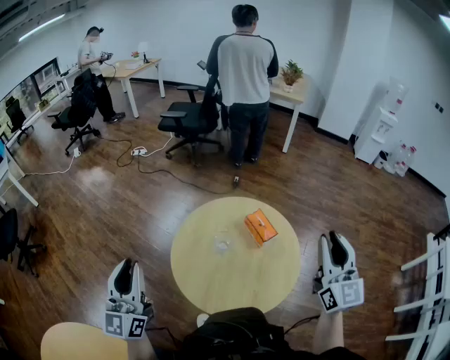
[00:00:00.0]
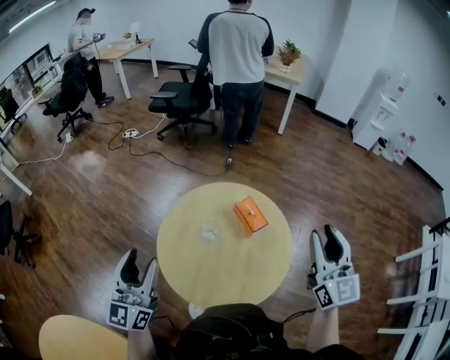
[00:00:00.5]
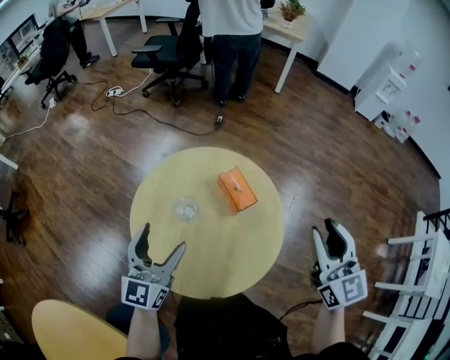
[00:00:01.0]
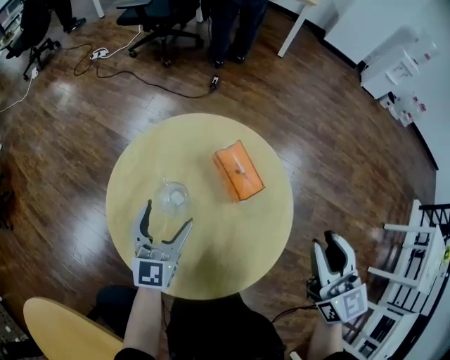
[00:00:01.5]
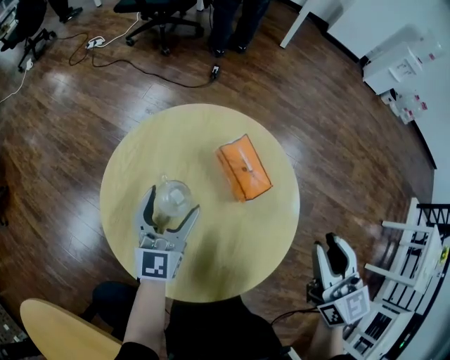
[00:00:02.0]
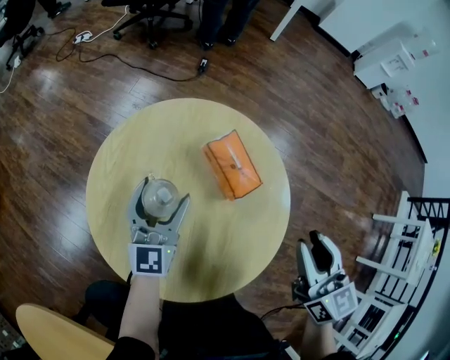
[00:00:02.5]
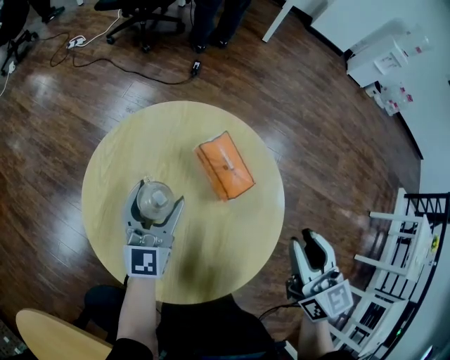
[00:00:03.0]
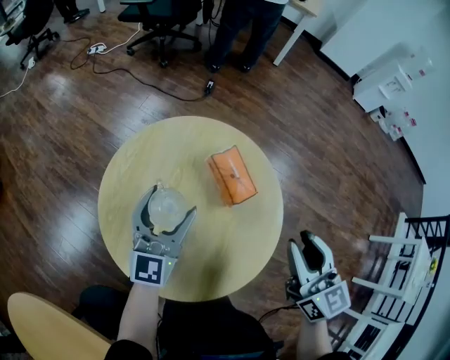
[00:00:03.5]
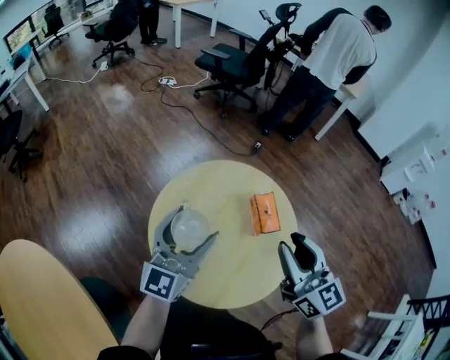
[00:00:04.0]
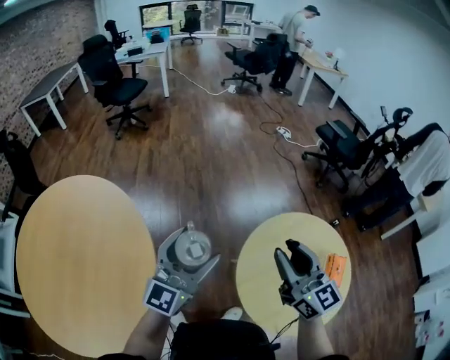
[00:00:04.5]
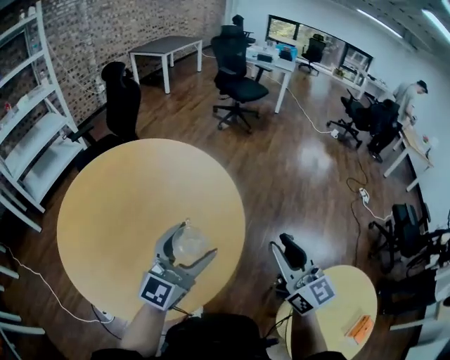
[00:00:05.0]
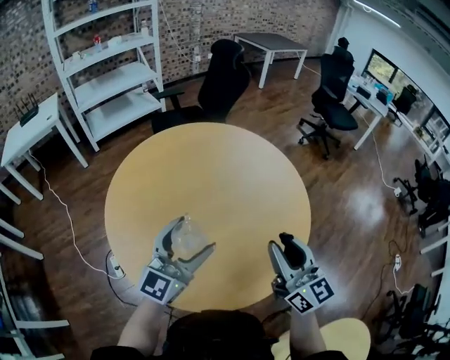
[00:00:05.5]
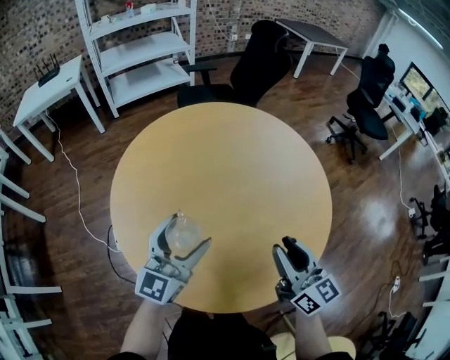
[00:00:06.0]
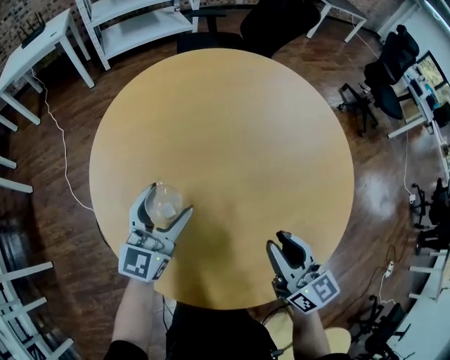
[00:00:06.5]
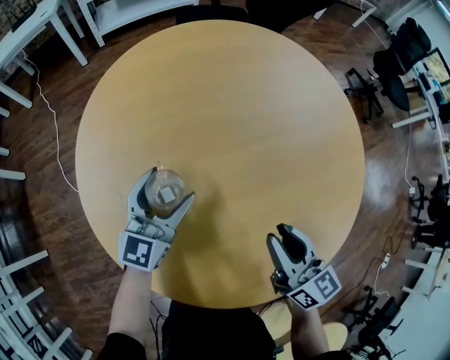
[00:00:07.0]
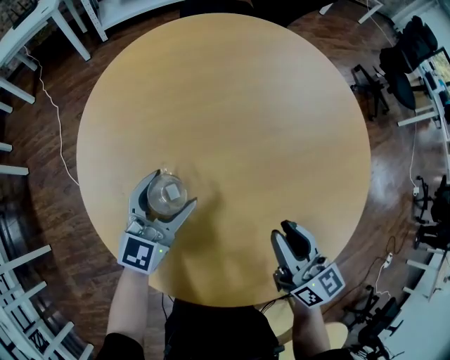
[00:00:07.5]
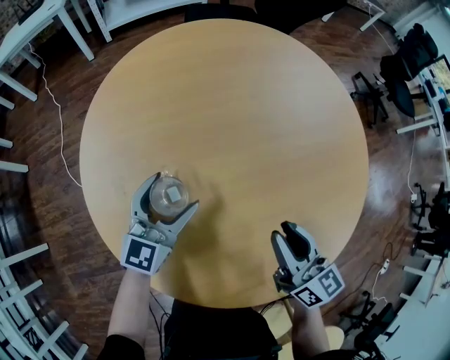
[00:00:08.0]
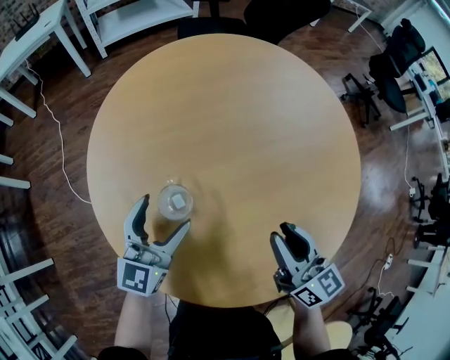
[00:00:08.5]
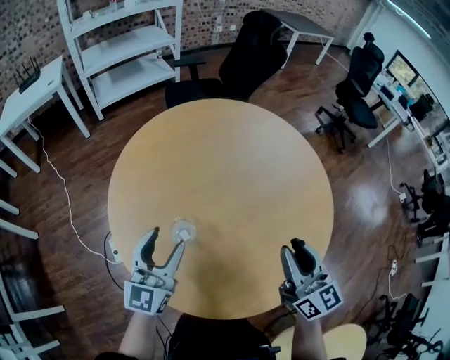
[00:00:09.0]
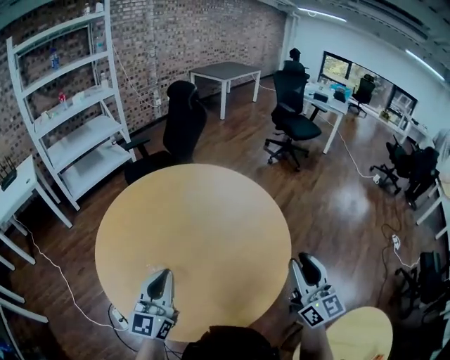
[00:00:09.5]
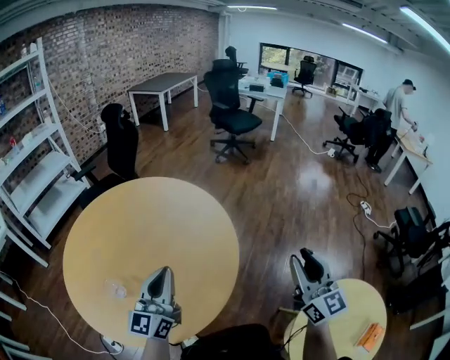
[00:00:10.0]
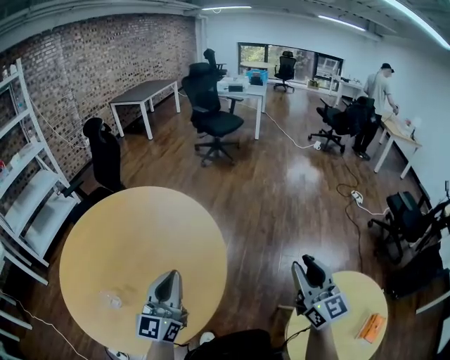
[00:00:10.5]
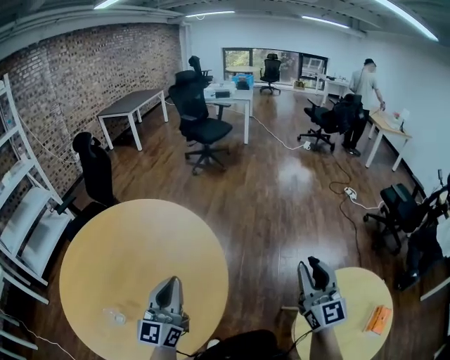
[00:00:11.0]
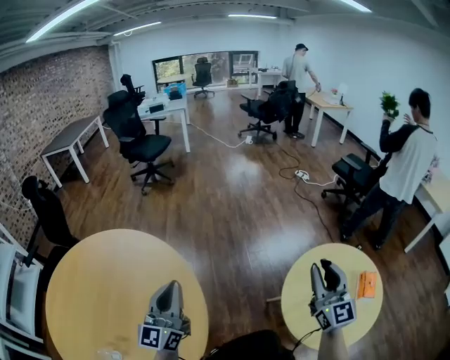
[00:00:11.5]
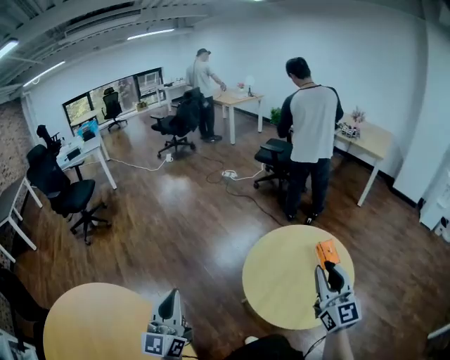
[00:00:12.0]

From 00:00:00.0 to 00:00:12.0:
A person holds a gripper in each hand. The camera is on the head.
From 00:00:00.0 to 00:00:02.0: The left gripper travels downward, to the right and forward by roughly 40 cm, turns by about 20 degrees, and opens. Meanwhile the right gripper is displaced downward by some 20 cm, and changes its angle by about 30 degrees.
From 00:00:02.0 to 00:00:04.0: The right gripper heads to the left and upward, covering roughly 15 cm, and rotates some 30 degrees. Meanwhile the left gripper is displaced upward and backward by about 20 cm.
From 00:00:04.0 to 00:00:06.0: Both grippers are carried roughly 80 cm. The right gripper swivels approximately 110 degrees; the left gripper turns by roughly 110 degrees.
From 00:00:06.0 to 00:00:08.0: The left gripper heads downward and forward, covering approximately 20 cm; the right gripper is displaced downward by some 15 cm.
From 00:00:08.0 to 00:00:10.0: The right gripper changes place by roughly 50 cm, and rotates about 60 degrees. The left gripper shifts by roughly 35 cm, rotates about 40 degrees, and closes up.
From 00:00:10.0 to 00:00:12.0: The left gripper moves roughly 30 cm, and rotates approximately 60 degrees; the right gripper moves roughly 40 cm, and swivels some 70 degrees.

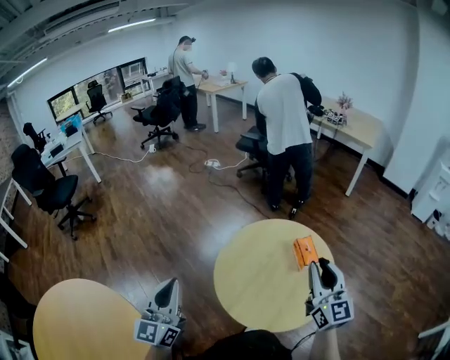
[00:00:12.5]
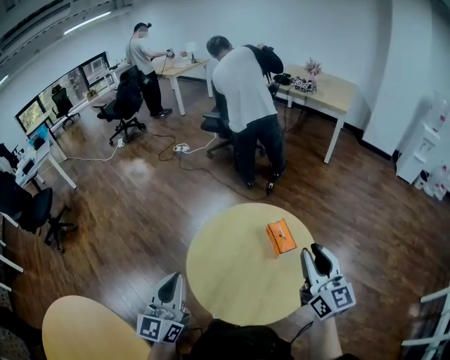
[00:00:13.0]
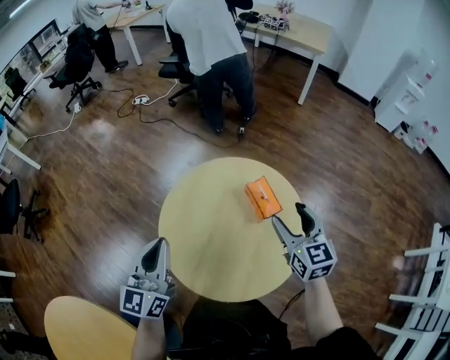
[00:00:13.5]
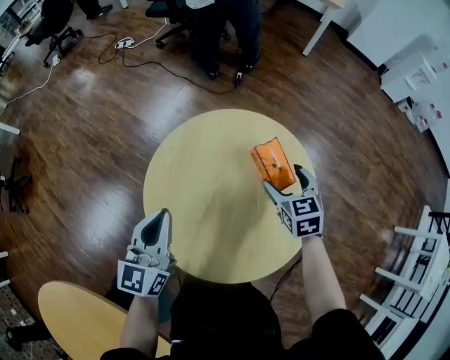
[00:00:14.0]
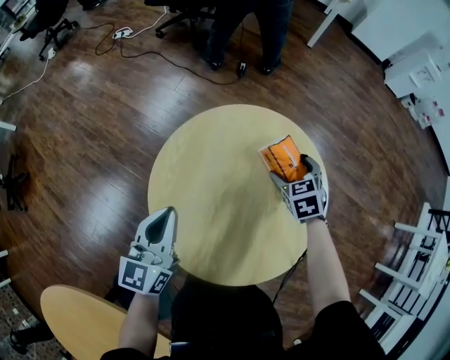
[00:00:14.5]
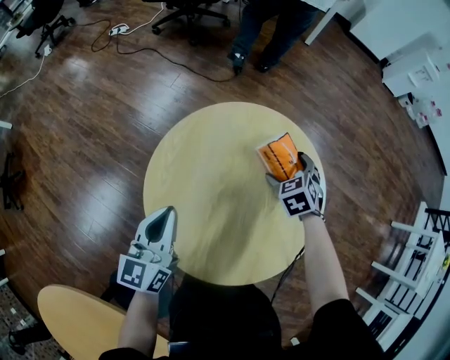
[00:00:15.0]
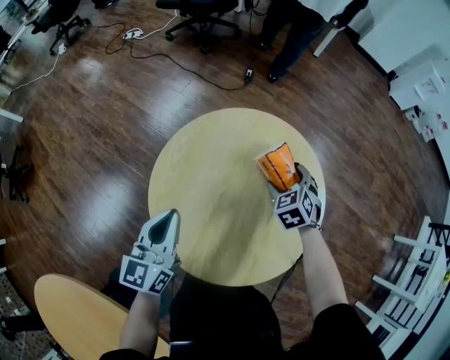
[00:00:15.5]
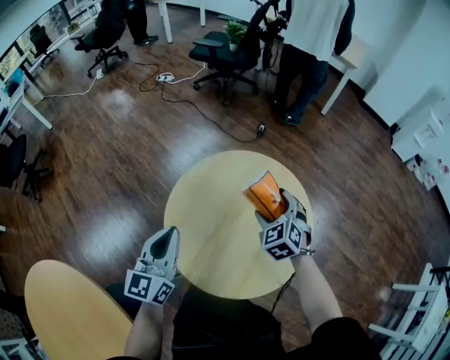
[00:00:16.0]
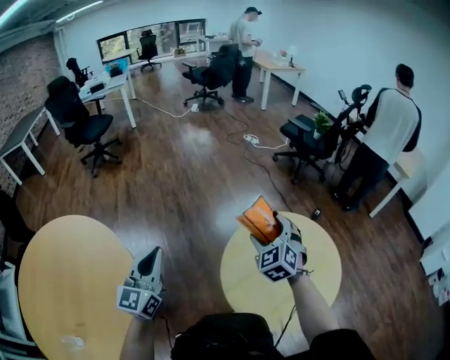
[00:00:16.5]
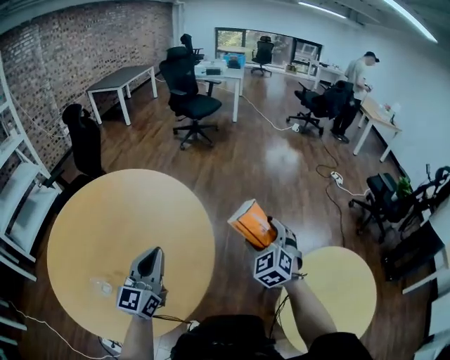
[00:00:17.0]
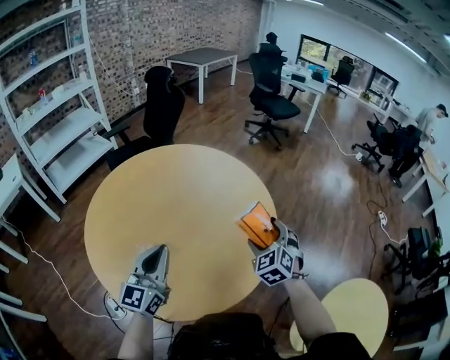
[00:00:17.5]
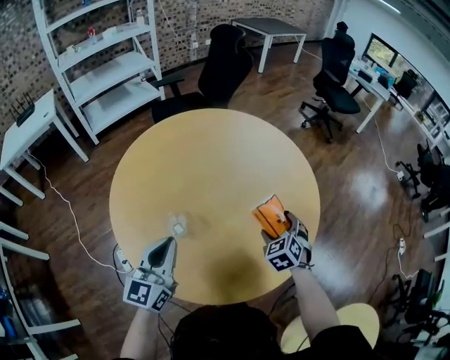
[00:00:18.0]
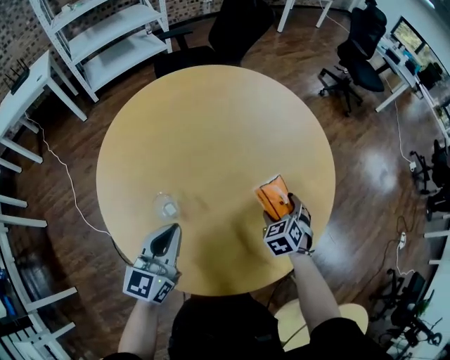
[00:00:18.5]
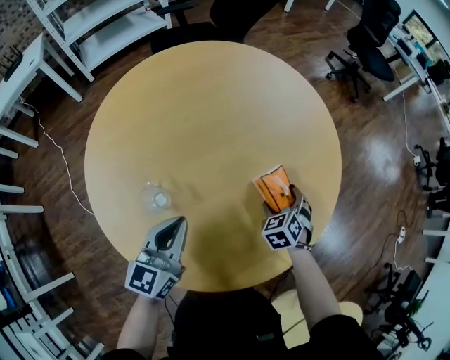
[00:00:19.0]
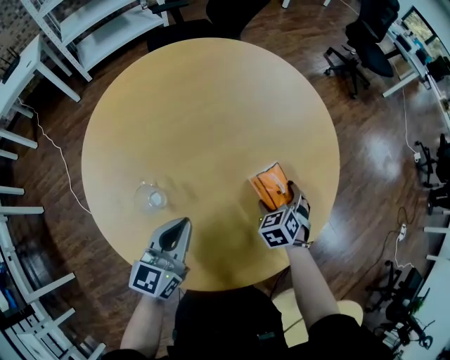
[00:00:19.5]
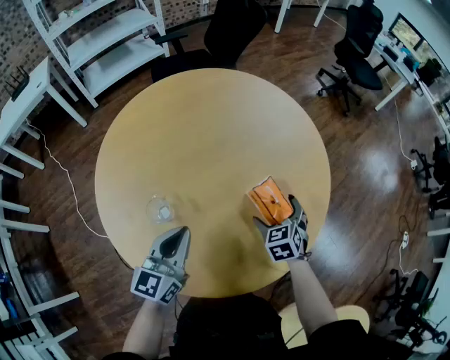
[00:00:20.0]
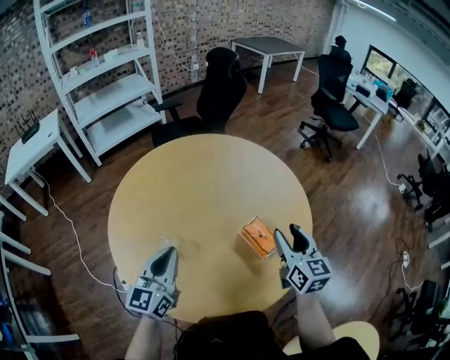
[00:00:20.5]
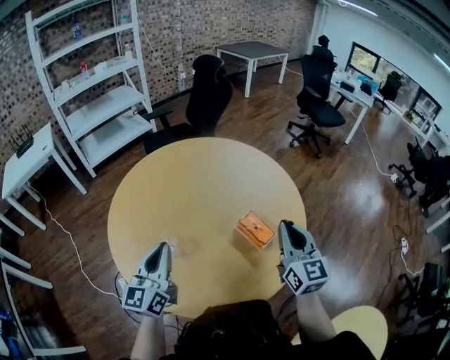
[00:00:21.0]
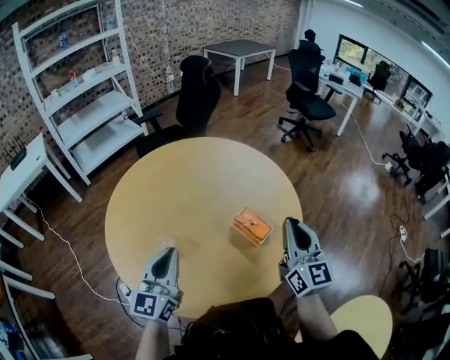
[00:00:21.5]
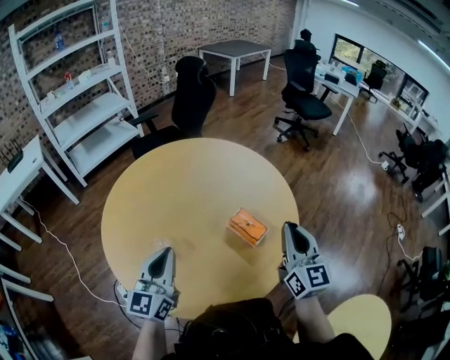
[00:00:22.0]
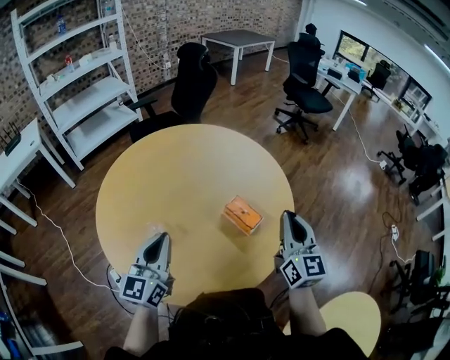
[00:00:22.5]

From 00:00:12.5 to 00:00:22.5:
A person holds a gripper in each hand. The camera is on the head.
From 00:00:12.5 to 00:00:14.5: The left gripper is displaced forward, downward and to the right by about 35 cm, and changes its angle by approximately 40 degrees; the right gripper is displaced downward and forward by roughly 40 cm, tilts its fingers some 60 degrees downward, and opens.
From 00:00:14.5 to 00:00:16.5: The left gripper ends up some 35 cm from where it was, and swivels roughly 50 degrees. Meanwhile the right gripper changes place by roughly 40 cm, and turns by about 60 degrees.
From 00:00:16.5 to 00:00:18.5: The pair of grippers is taken some 60 cm. The right gripper swivels approximately 60 degrees. The left gripper swivels about 70 degrees.
From 00:00:18.5 to 00:00:20.5: The right gripper goes some 20 cm upward, and points its fingers about 40 degrees further upward. The left gripper shifts about 5 cm upward.
From 00:00:20.5 to 00:00:22.5: The right gripper is displaced backward and upward by approximately 10 cm, and closes.

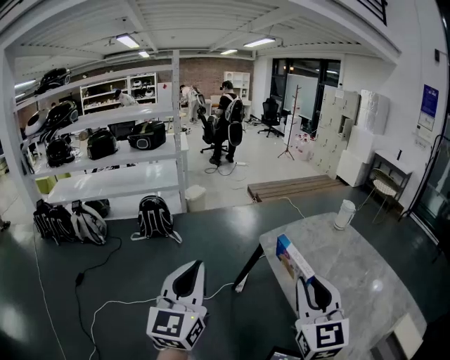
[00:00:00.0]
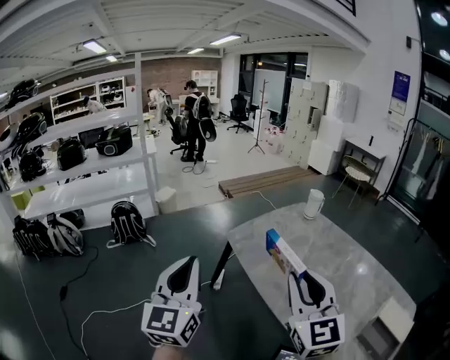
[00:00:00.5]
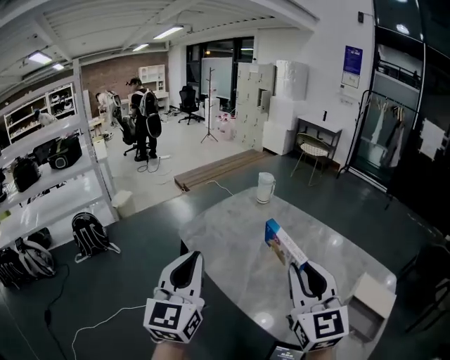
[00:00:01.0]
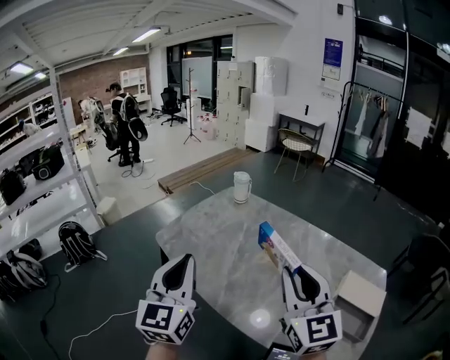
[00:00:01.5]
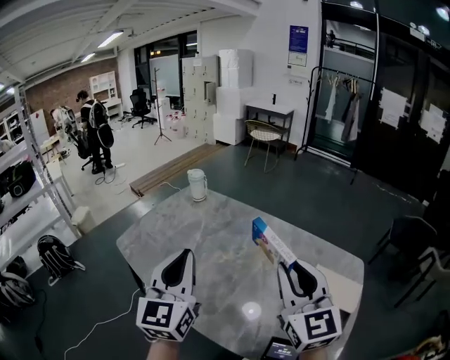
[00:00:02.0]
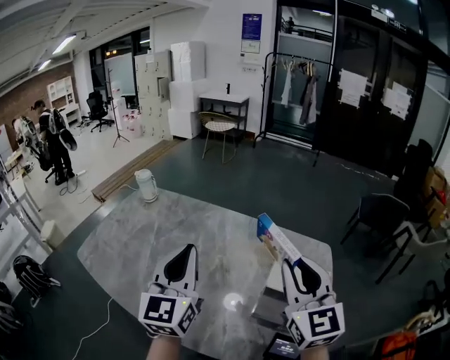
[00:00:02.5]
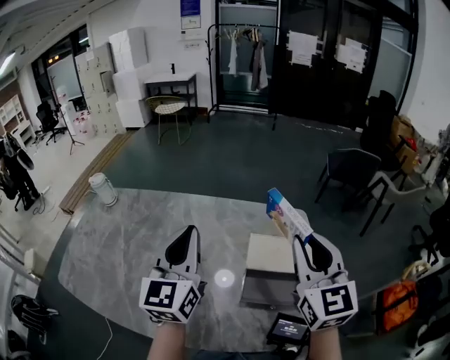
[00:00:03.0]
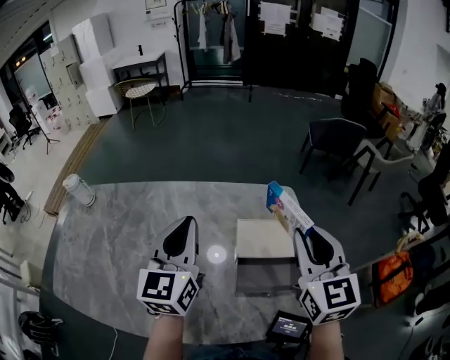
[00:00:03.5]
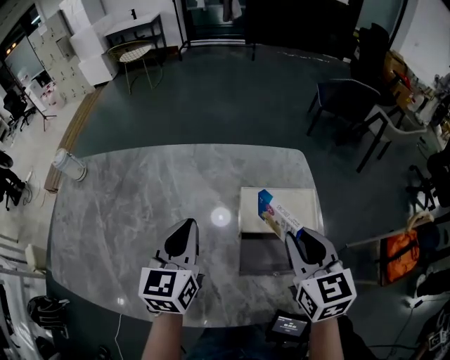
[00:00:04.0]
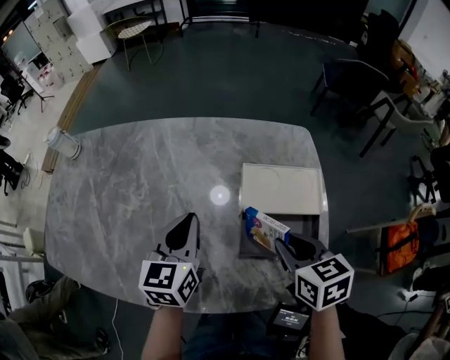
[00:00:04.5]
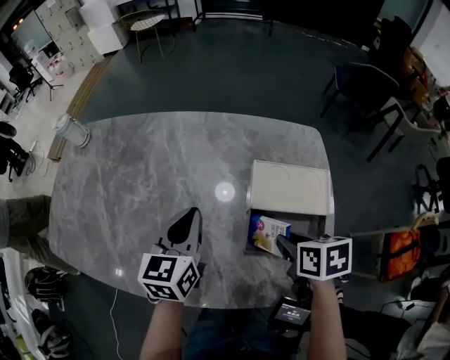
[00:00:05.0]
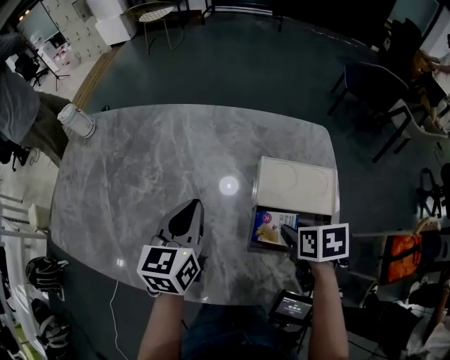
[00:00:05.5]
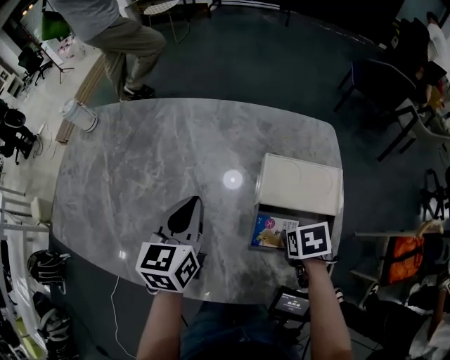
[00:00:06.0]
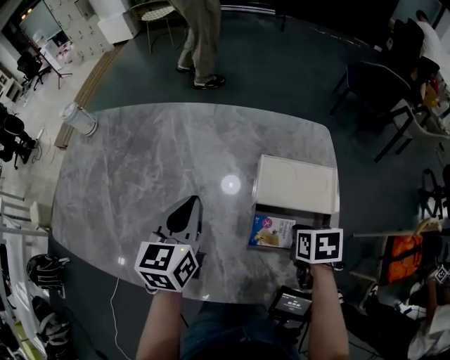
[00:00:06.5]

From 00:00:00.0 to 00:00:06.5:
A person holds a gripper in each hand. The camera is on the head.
From 00:00:00.0 to 00:00:02.0: The left gripper changes place by some 40 cm, and rotates roughly 30 degrees. Meanwhile the right gripper ends up approximately 35 cm from where it was, and swivels approximately 30 degrees.
From 00:00:02.0 to 00:00:04.5: The left gripper changes place by approximately 35 cm, and changes its angle by about 50 degrees, while the right gripper is displaced downward by some 25 cm, and tips its fingers downward by approximately 50 degrees.
From 00:00:04.5 to 00:00:06.5: The right gripper travels downward by about 10 cm, turns by about 20 degrees, and opens and closes again.
